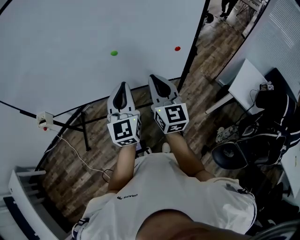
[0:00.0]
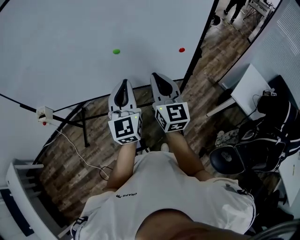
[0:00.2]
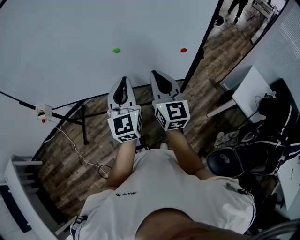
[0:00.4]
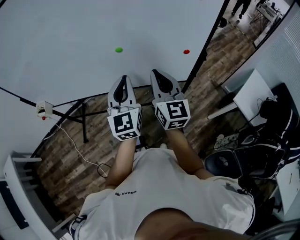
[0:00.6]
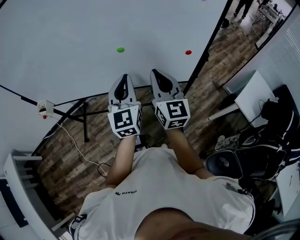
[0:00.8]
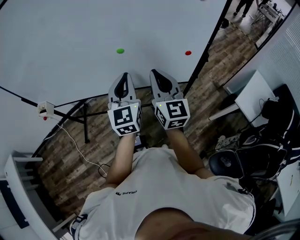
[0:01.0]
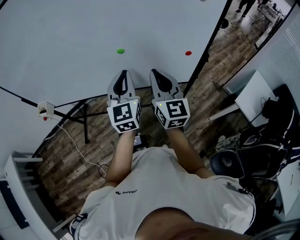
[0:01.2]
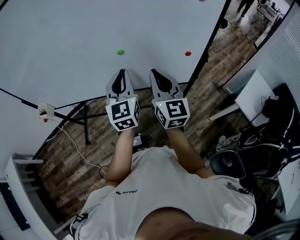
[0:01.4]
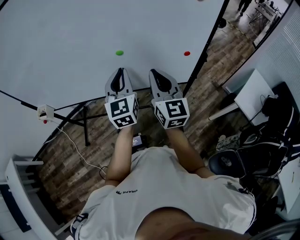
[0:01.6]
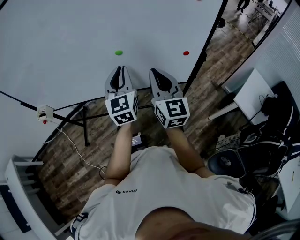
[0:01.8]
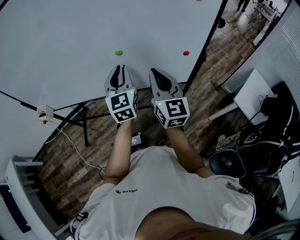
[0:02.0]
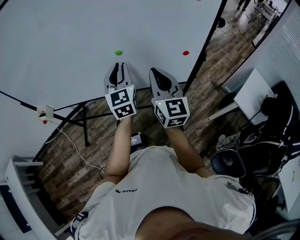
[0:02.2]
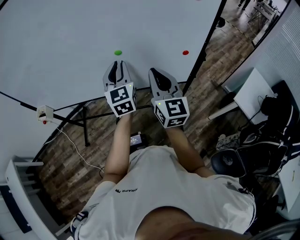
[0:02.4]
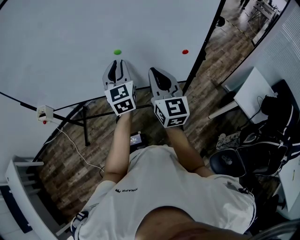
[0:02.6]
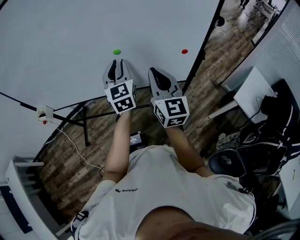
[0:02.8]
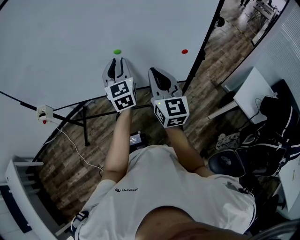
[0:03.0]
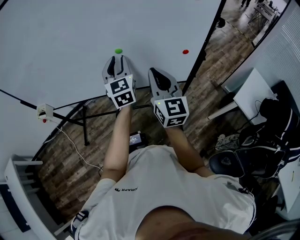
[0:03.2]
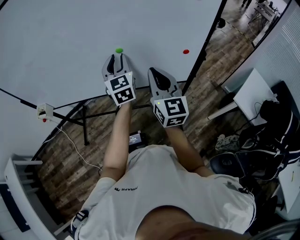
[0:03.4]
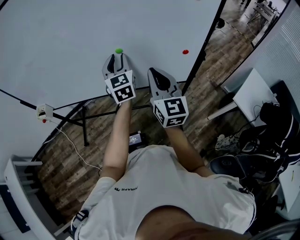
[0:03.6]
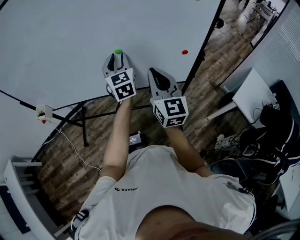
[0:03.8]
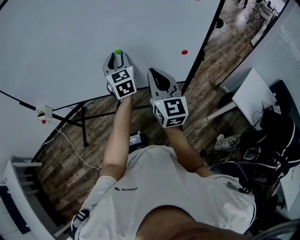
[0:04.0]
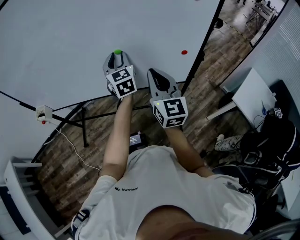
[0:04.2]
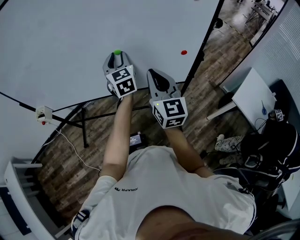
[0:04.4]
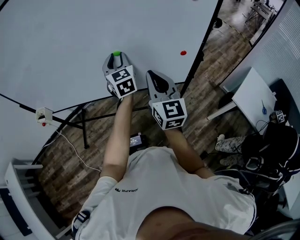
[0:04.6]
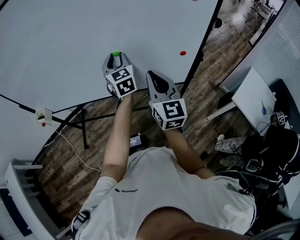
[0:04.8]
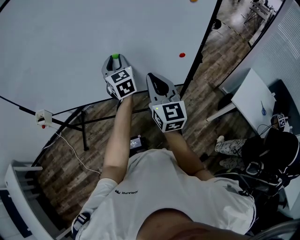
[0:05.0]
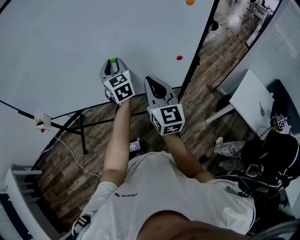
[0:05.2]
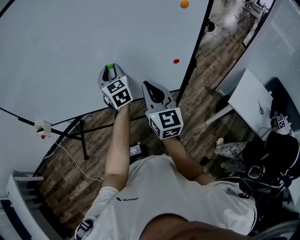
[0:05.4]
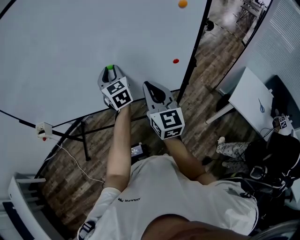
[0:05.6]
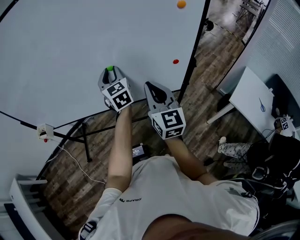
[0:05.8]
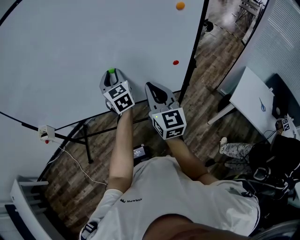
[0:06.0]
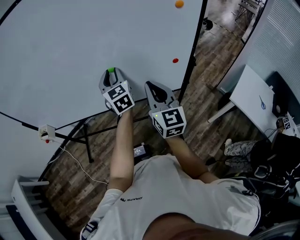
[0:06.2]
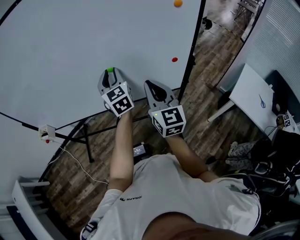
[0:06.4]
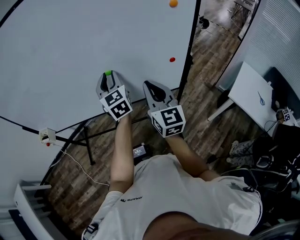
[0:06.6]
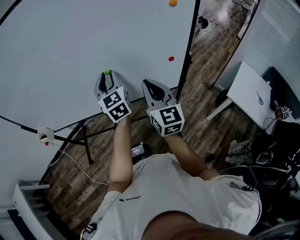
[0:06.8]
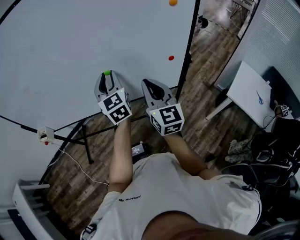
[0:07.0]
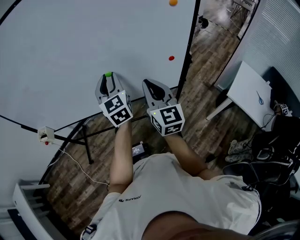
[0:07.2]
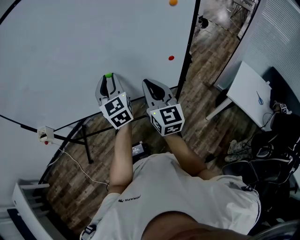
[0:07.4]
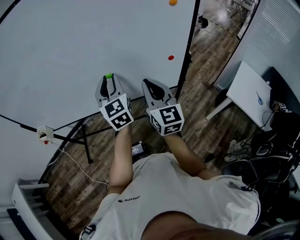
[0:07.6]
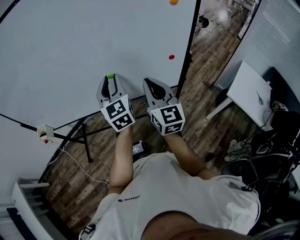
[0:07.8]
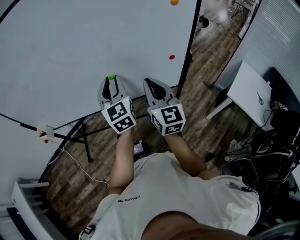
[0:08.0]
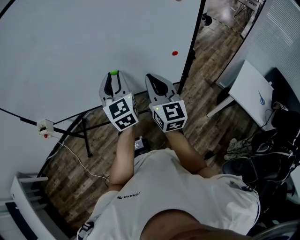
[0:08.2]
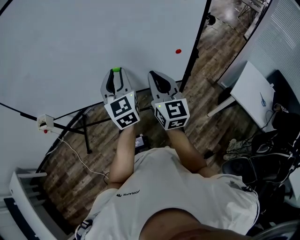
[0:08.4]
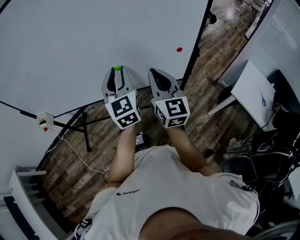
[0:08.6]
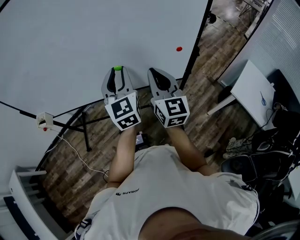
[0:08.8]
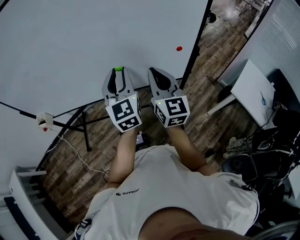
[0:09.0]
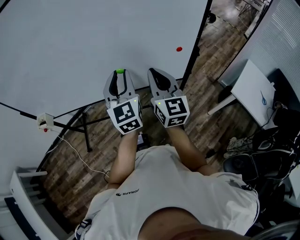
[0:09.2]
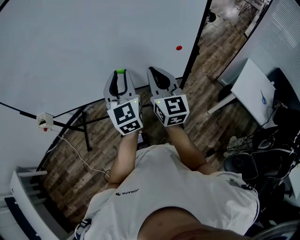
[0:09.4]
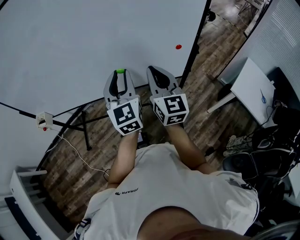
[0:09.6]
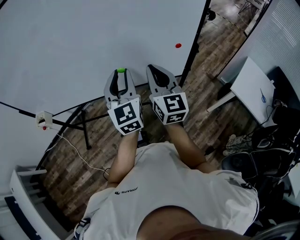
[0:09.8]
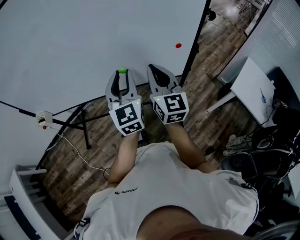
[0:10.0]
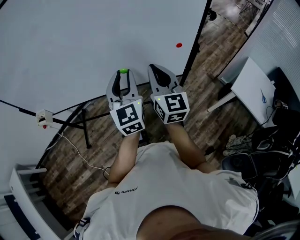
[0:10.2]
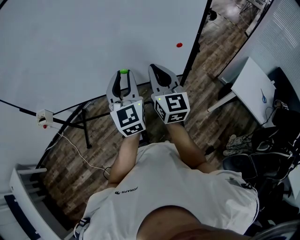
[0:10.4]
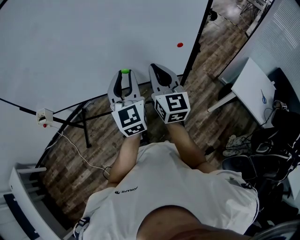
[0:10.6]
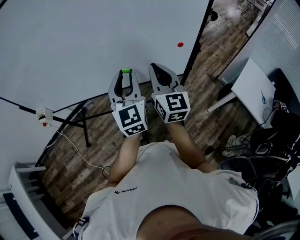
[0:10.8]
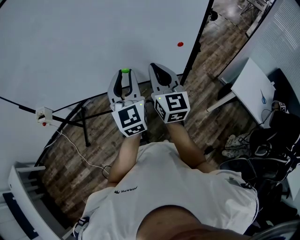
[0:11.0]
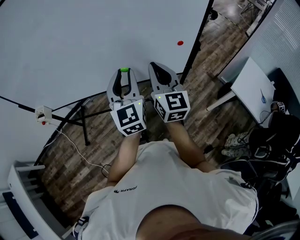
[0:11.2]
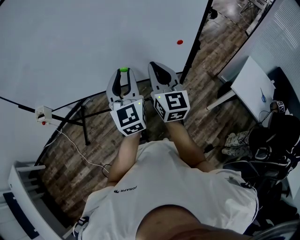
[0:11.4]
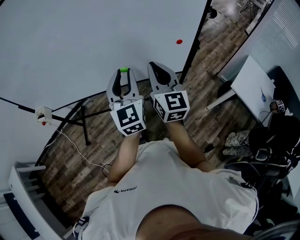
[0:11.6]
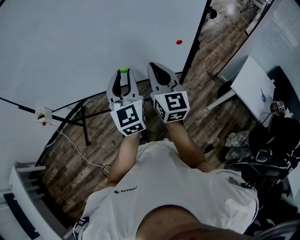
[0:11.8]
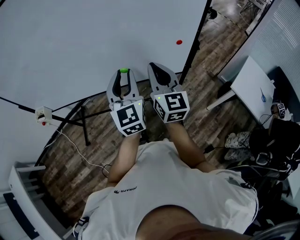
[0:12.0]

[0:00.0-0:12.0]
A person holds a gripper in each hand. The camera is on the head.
0:00.0 to 0:01.6: The left gripper travels forward by roughly 5 cm.
0:01.6 to 0:03.0: The left gripper moves forward, approximately 5 cm.
0:03.0 to 0:06.0: The grippers move only a little.
0:06.0 to 0:07.6: The left gripper moves backward, about 5 cm.
0:07.6 to 0:09.0: The grippers make only small movements.
0:09.0 to 0:10.4: The grippers move only a little.
0:10.4 to 0:12.0: Neither gripper changes place.

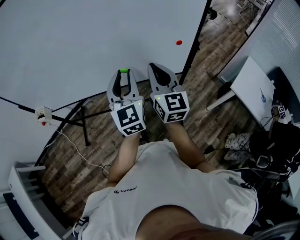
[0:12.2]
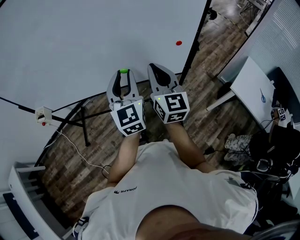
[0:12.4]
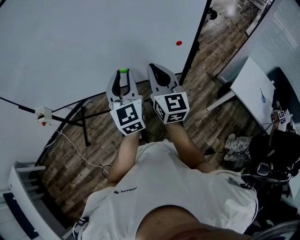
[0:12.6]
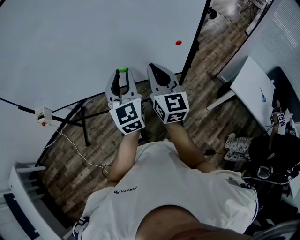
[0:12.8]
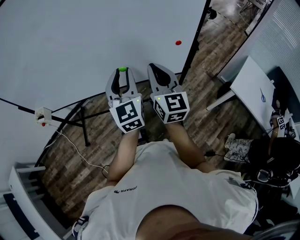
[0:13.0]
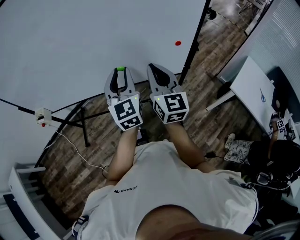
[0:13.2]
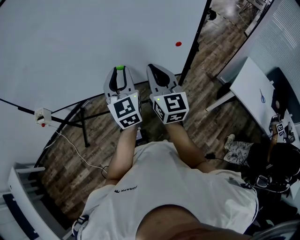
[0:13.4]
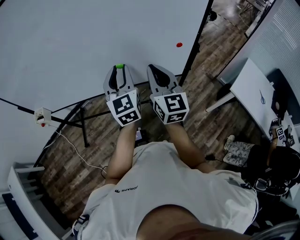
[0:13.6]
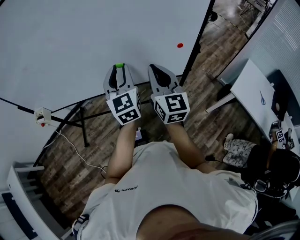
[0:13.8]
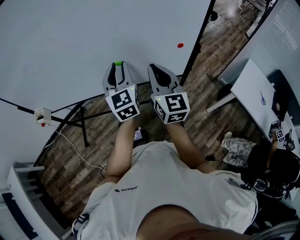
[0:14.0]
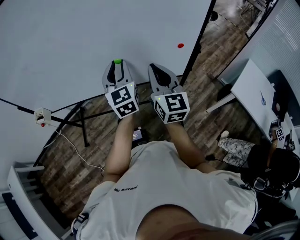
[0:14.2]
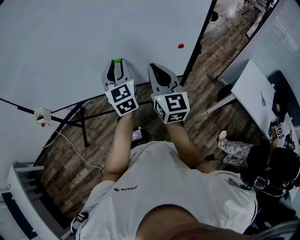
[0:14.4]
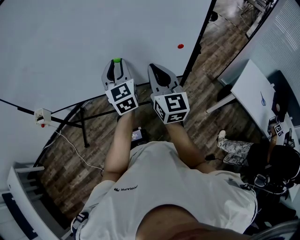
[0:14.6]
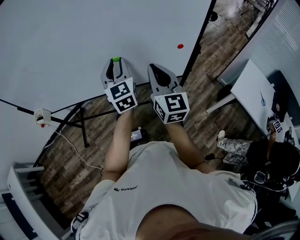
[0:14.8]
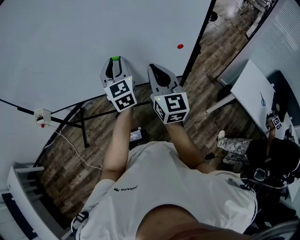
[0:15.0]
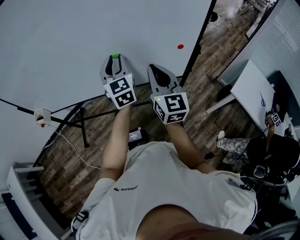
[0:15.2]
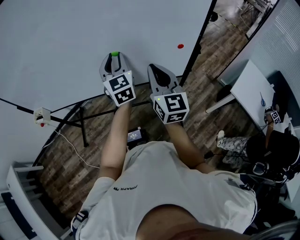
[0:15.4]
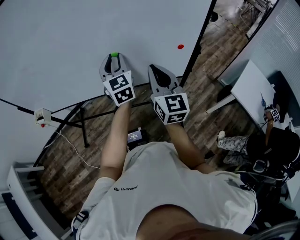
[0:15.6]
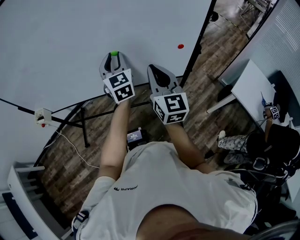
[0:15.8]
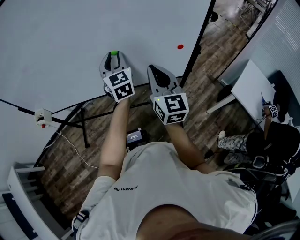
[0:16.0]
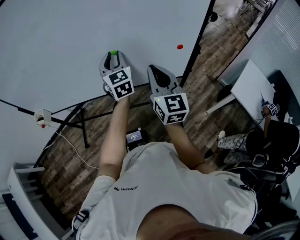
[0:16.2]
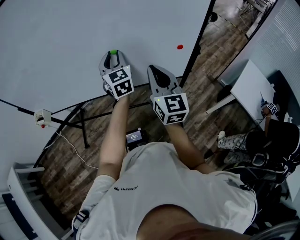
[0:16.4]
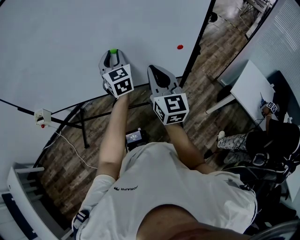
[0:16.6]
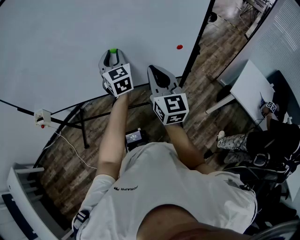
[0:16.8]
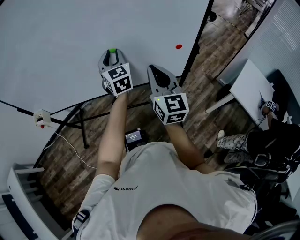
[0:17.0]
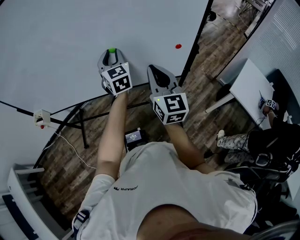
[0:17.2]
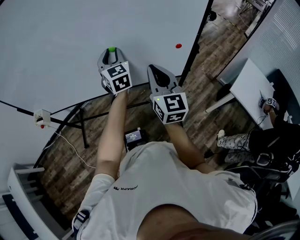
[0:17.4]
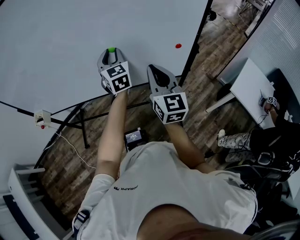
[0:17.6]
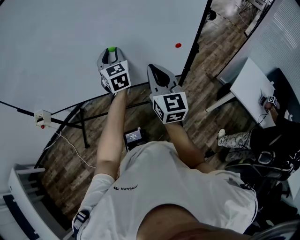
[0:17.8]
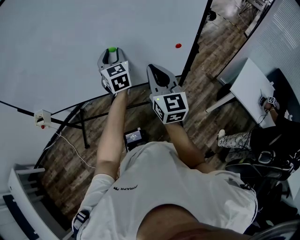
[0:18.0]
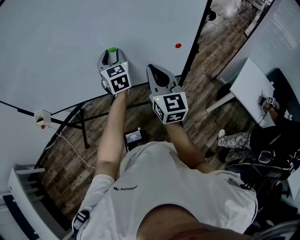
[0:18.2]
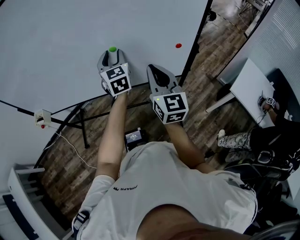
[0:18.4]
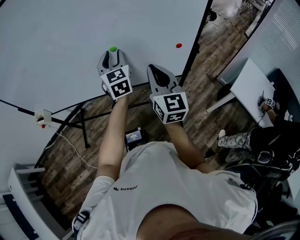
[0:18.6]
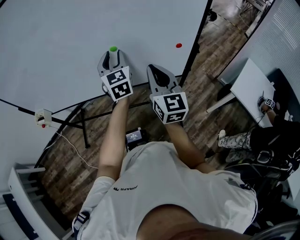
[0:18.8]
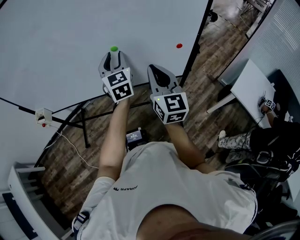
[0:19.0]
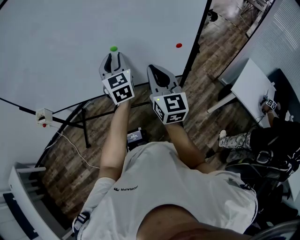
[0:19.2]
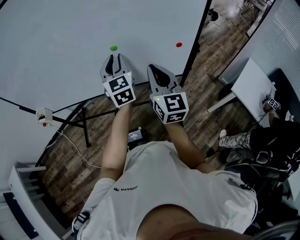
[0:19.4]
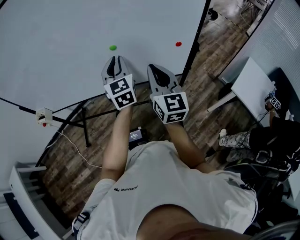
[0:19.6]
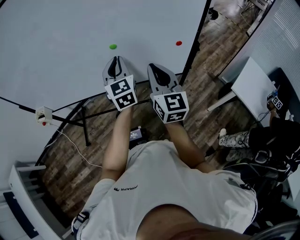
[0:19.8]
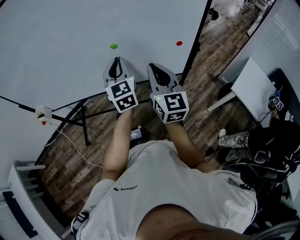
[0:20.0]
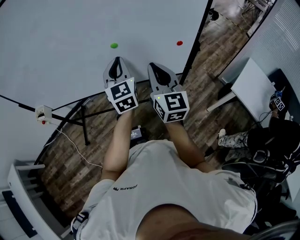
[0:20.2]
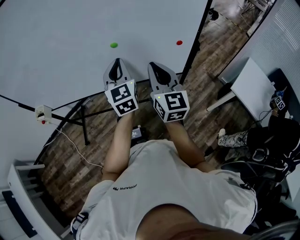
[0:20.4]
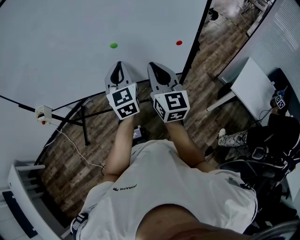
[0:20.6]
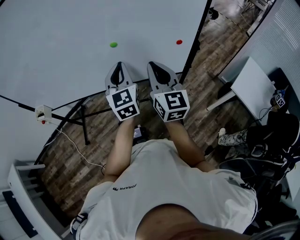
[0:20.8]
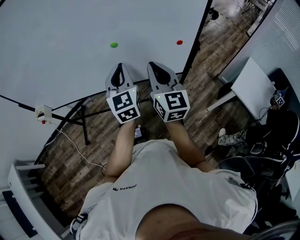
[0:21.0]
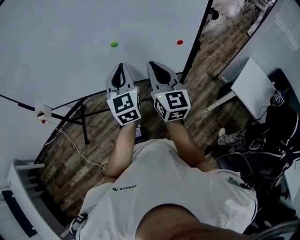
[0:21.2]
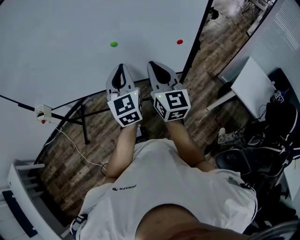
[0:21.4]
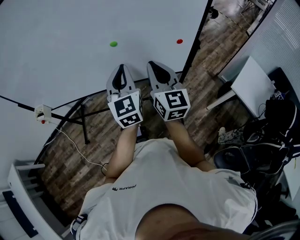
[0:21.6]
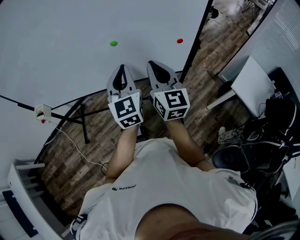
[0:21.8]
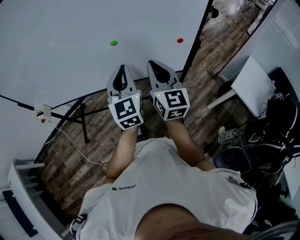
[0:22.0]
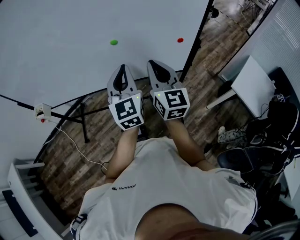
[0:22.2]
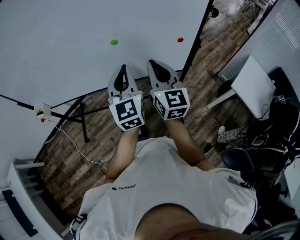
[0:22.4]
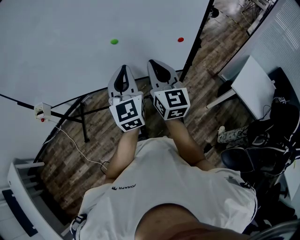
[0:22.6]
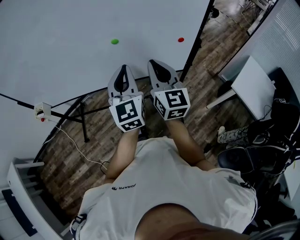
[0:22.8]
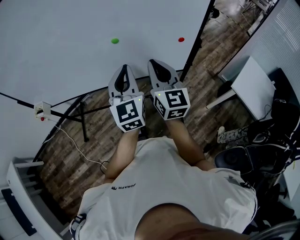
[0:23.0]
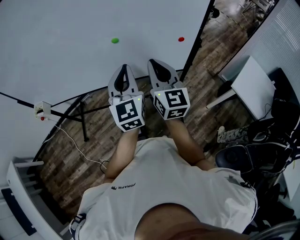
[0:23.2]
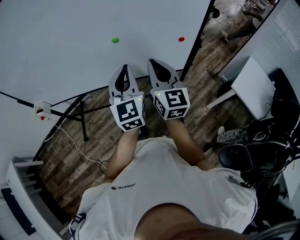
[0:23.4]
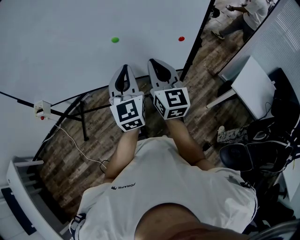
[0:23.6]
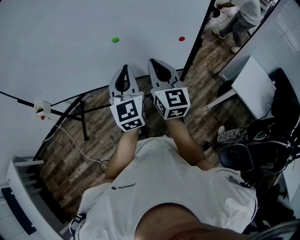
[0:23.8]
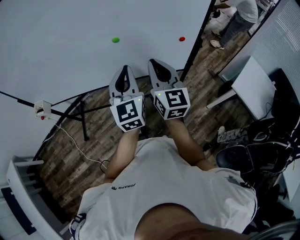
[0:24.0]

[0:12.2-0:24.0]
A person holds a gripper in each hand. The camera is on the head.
0:12.2 to 0:13.6: The grippers move only a little.
0:13.6 to 0:15.2: The left gripper shifts some 5 cm forward.
0:15.2 to 0:16.6: The grippers stay close to where they were, moving slightly.
0:16.6 to 0:18.2: Both grippers stay put.
0:18.2 to 0:19.6: The left gripper moves backward, approximately 5 cm, and closes.
0:19.6 to 0:21.0: The left gripper is displaced backward by roughly 5 cm.
0:21.0 to 0:22.6: The grippers make only small movements.
0:22.6 to 0:24.0: Both grippers stay about where they are.
